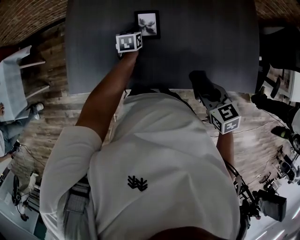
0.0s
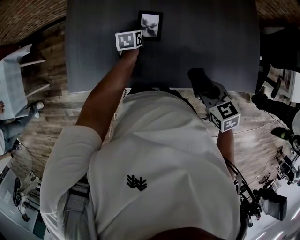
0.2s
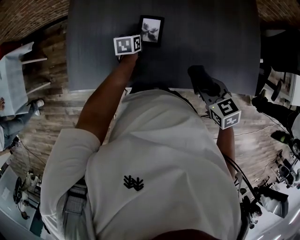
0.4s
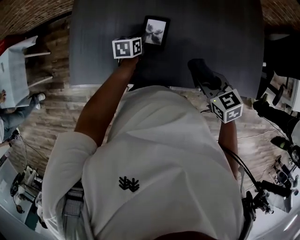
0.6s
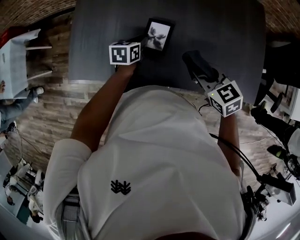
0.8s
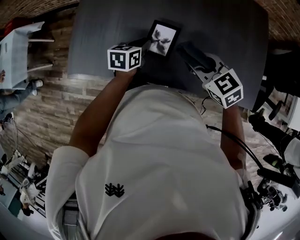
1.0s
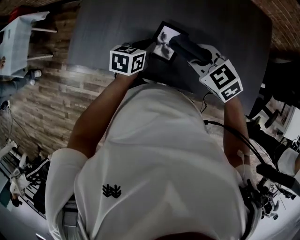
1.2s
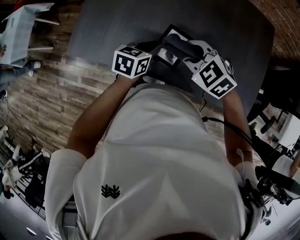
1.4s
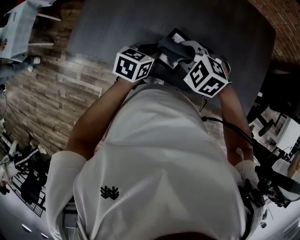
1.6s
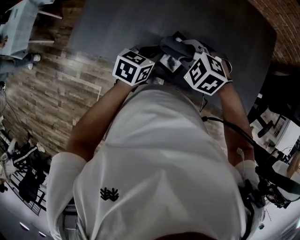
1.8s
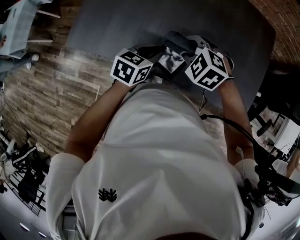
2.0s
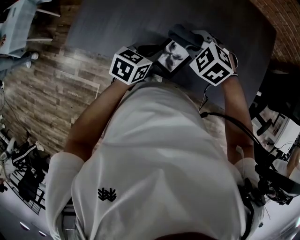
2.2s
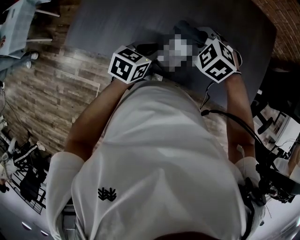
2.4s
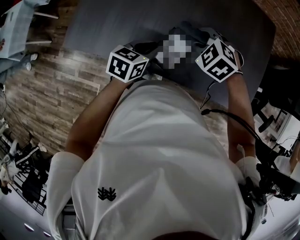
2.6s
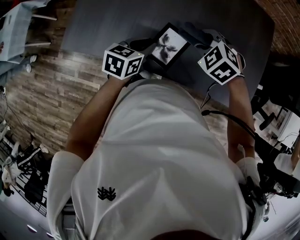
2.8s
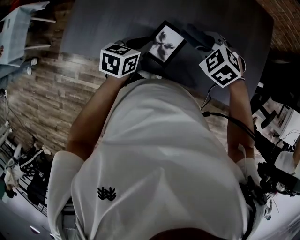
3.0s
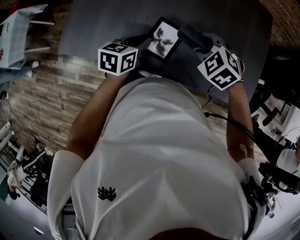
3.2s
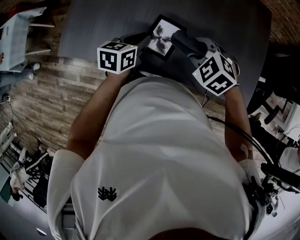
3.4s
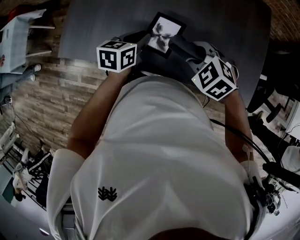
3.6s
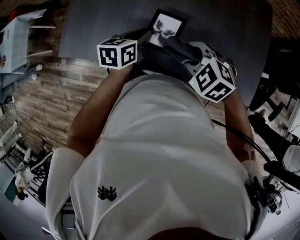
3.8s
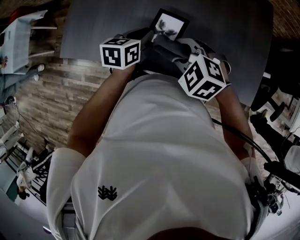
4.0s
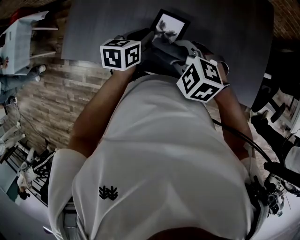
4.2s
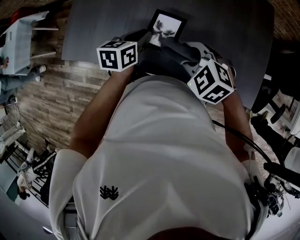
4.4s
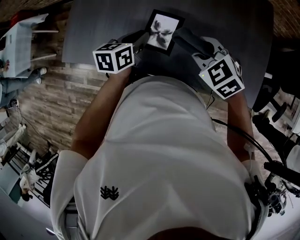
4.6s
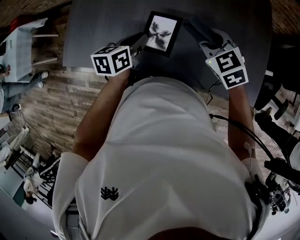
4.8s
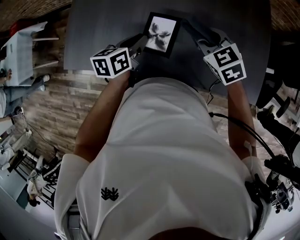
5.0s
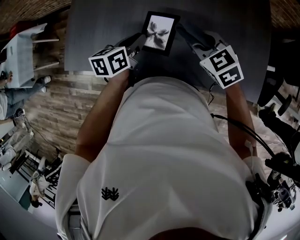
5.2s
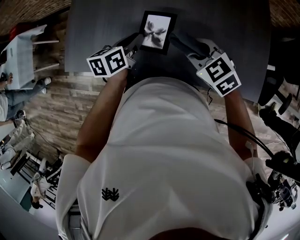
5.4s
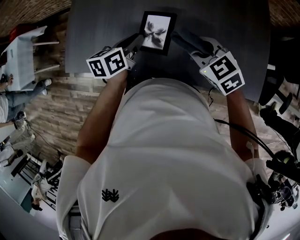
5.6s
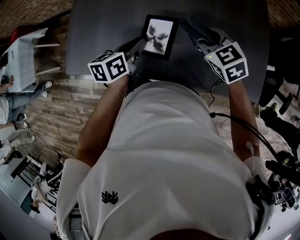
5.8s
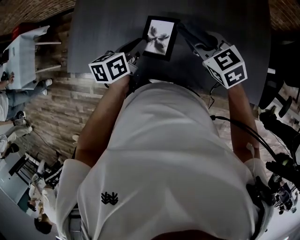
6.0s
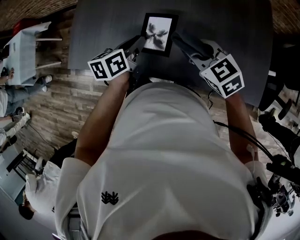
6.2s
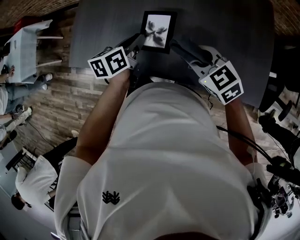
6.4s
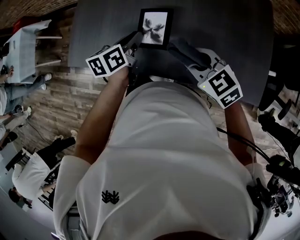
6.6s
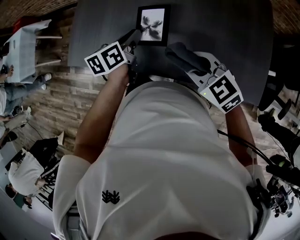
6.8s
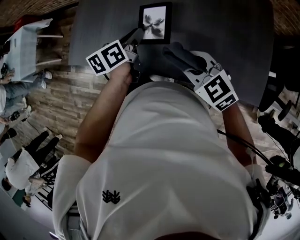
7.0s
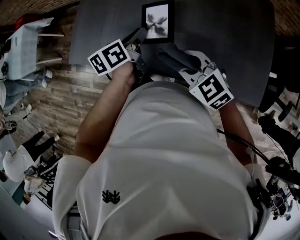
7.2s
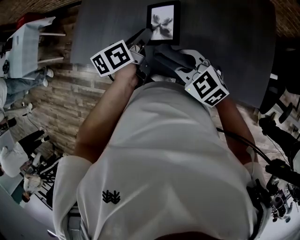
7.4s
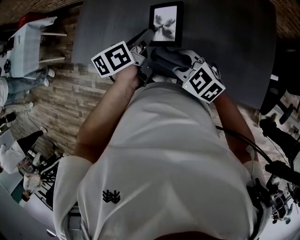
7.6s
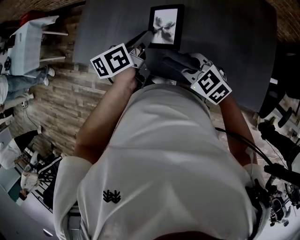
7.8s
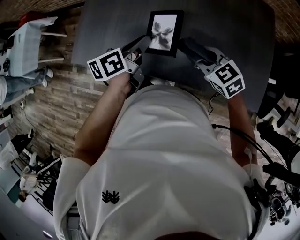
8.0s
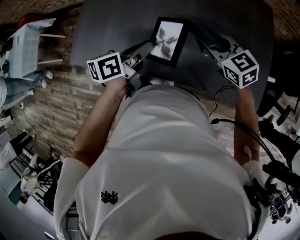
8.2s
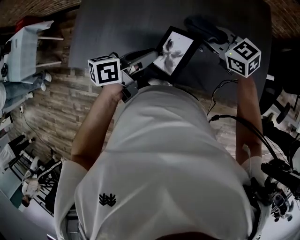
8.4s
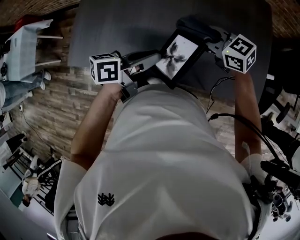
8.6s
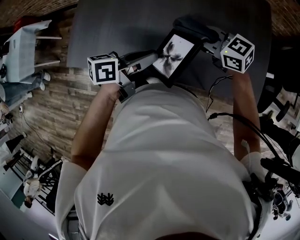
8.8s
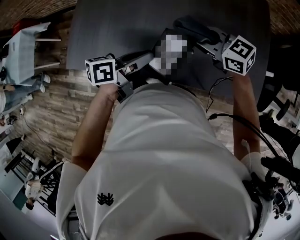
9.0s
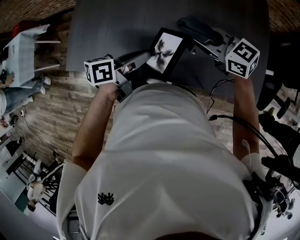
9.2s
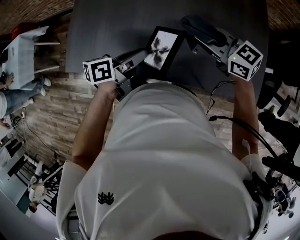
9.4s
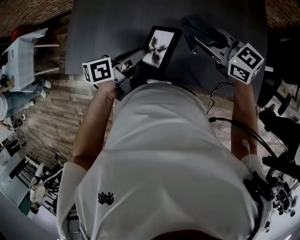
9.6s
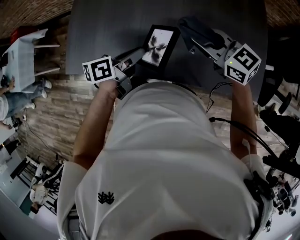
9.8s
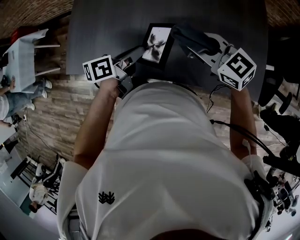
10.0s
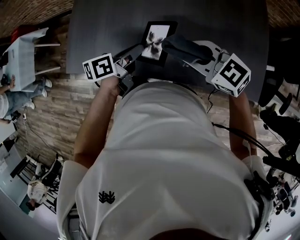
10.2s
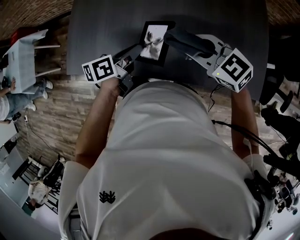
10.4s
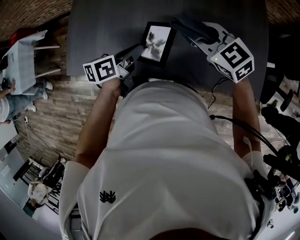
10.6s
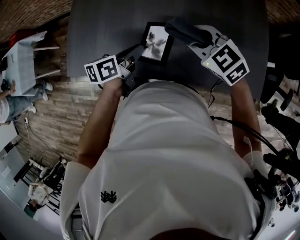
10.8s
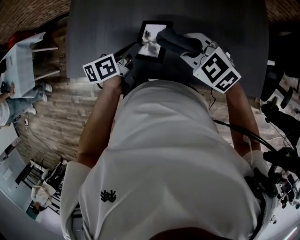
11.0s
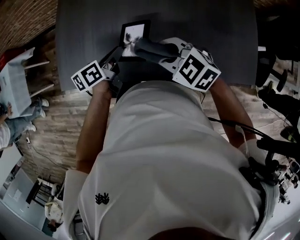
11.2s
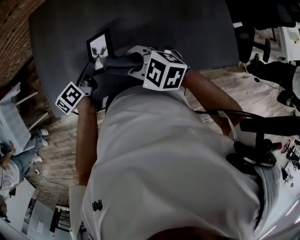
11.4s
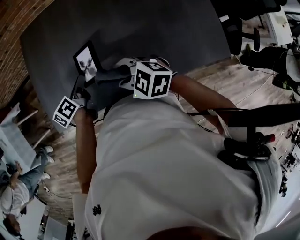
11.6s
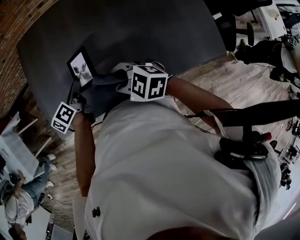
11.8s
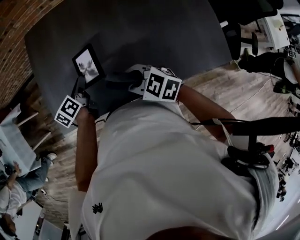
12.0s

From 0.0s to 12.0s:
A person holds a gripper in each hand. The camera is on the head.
From 0.0s to 1.6s: The right gripper is displaced forward and to the left by approximately 10 cm, and rolls counterclockwise, seen from behind, by some 60 degrees. Meanwhile the left gripper travels backward and upward by approximately 25 cm.
From 1.6s to 3.0s: The right gripper travels to the right by approximately 10 cm.
From 3.0s to 4.4s: The right gripper is displaced backward by approximately 5 cm.
From 4.4s to 6.0s: The right gripper goes forward and backward, about 10 cm each way, reversing 2 times, and rotates some 30 degrees.
From 6.0s to 7.6s: The right gripper heads to the left and backward, covering some 15 cm, and rotates roughly 20 degrees.
From 7.6s to 9.0s: The right gripper changes place by about 15 cm, and swivels approximately 20 degrees; the left gripper moves approximately 5 cm, and rotates some 30 degrees.
From 9.0s to 10.4s: The right gripper changes place by some 5 cm. The left gripper shifts by about 5 cm.
From 10.4s to 12.0s: The left gripper heads to the left and forward, covering roughly 15 cm, while the right gripper is displaced to the left by roughly 15 cm.

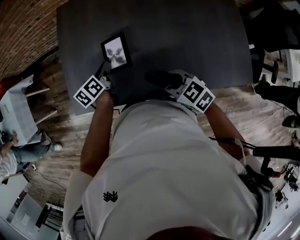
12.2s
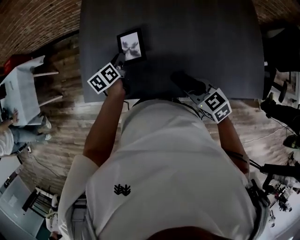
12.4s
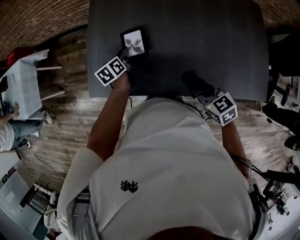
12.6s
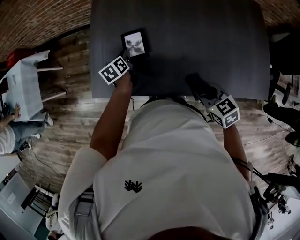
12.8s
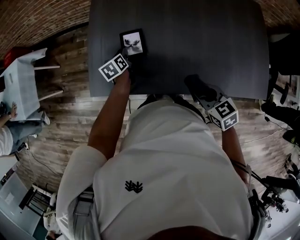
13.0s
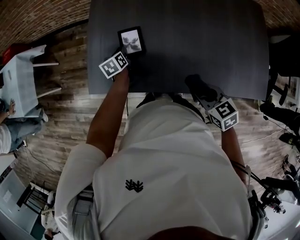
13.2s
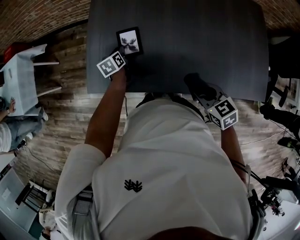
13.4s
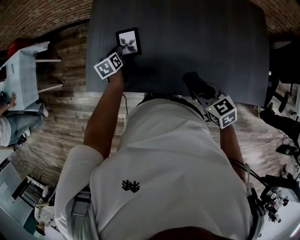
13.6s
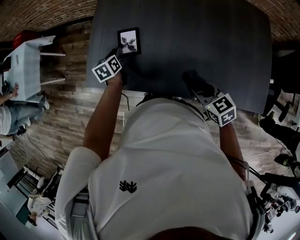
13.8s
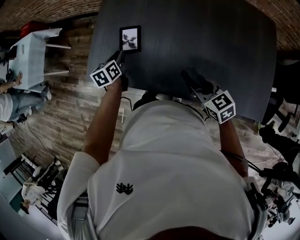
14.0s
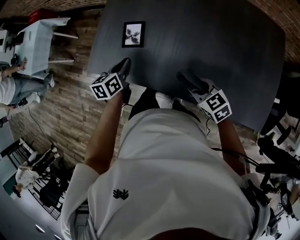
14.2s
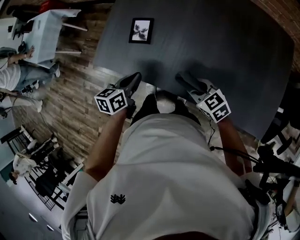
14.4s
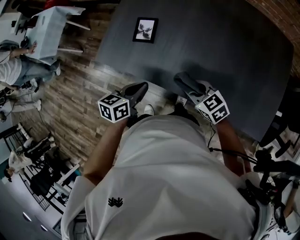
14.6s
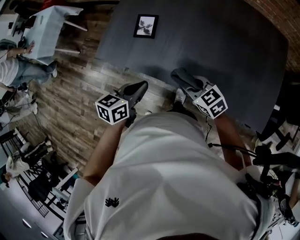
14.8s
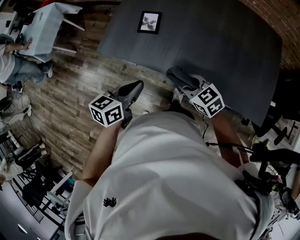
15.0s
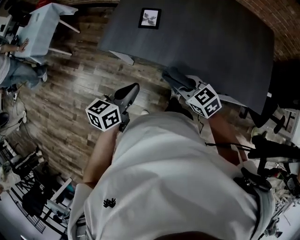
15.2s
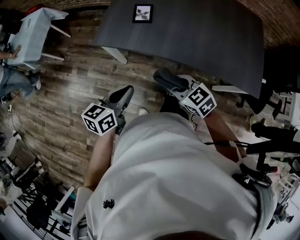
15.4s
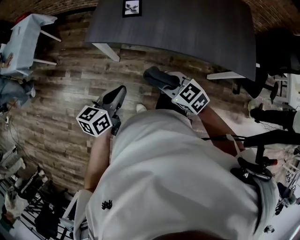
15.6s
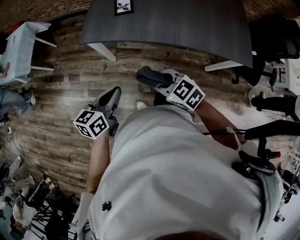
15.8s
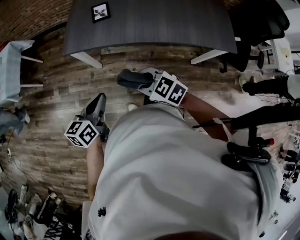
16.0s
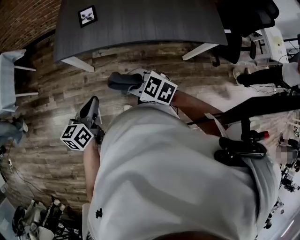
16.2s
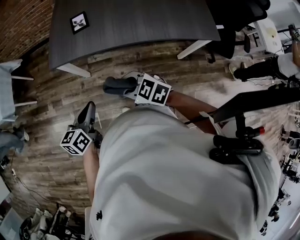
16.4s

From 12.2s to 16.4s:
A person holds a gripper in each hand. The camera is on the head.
From 12.2s to 13.6s: The left gripper goes roughly 20 cm to the left, downward and forward, and swivels approximately 20 degrees.
From 13.6s to 15.0s: The left gripper moves backward and upward, about 40 cm, and rotates some 30 degrees, while the right gripper moves to the left and backward, about 10 cm, and changes its angle by approximately 30 degrees.
From 15.0s to 16.4s: The grippers both shift backward and to the left by approximately 25 cm.

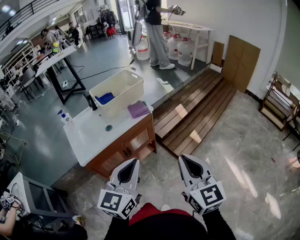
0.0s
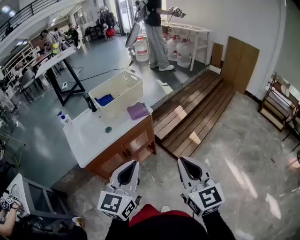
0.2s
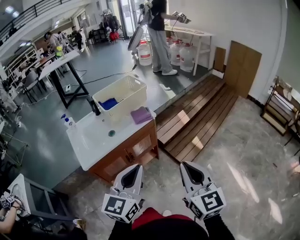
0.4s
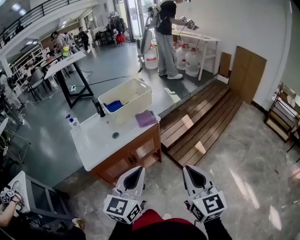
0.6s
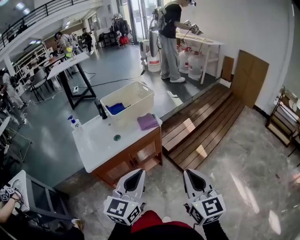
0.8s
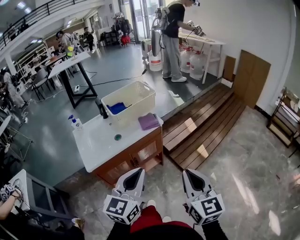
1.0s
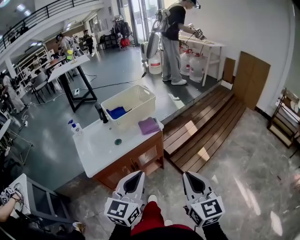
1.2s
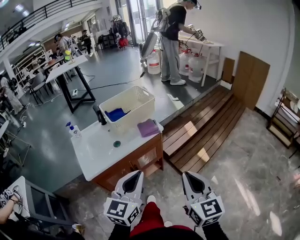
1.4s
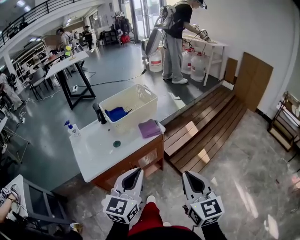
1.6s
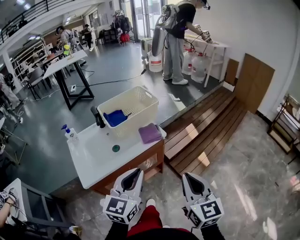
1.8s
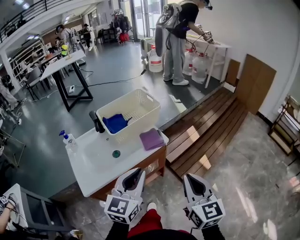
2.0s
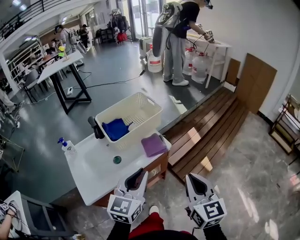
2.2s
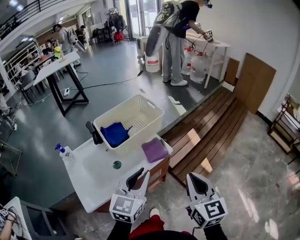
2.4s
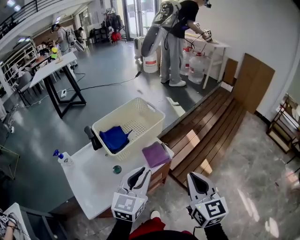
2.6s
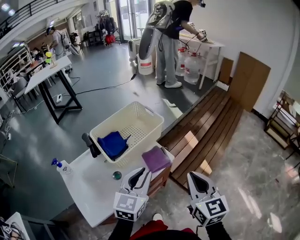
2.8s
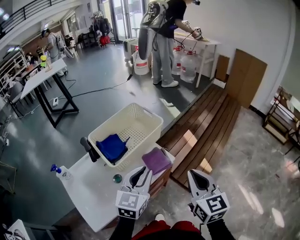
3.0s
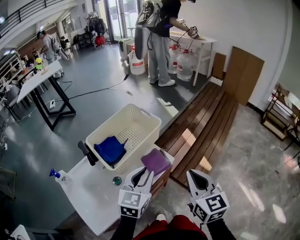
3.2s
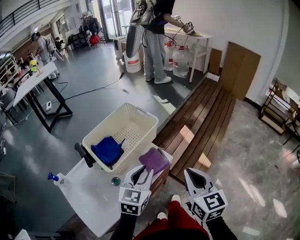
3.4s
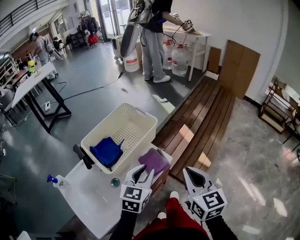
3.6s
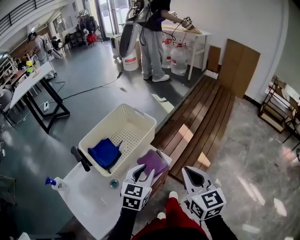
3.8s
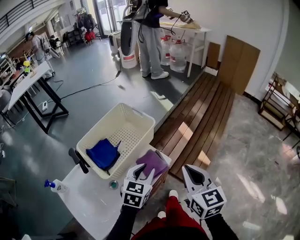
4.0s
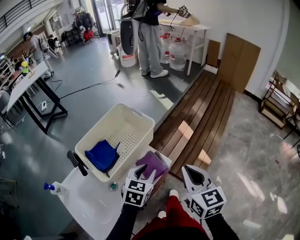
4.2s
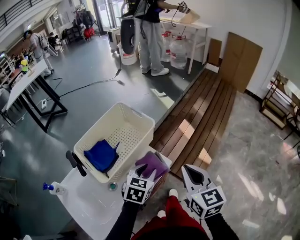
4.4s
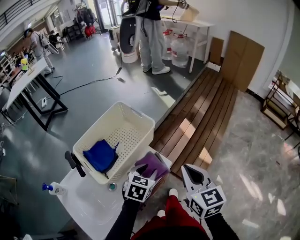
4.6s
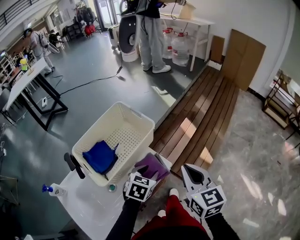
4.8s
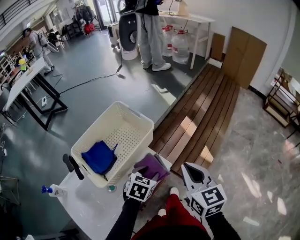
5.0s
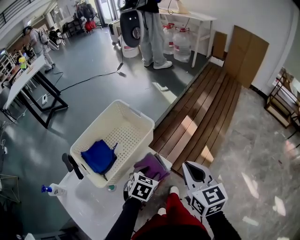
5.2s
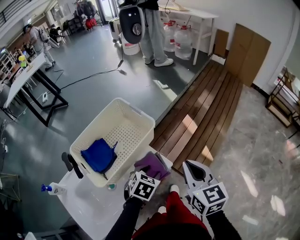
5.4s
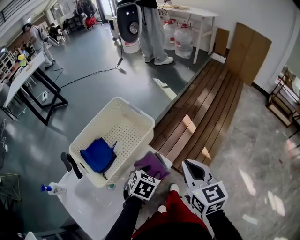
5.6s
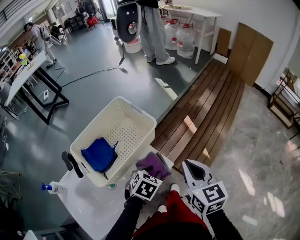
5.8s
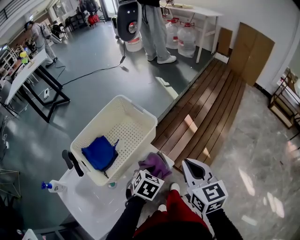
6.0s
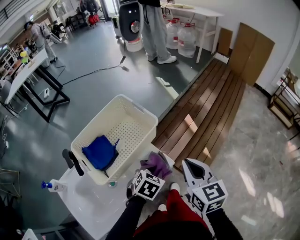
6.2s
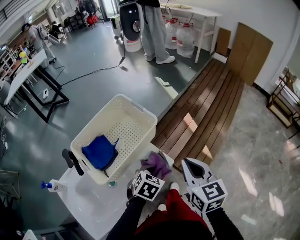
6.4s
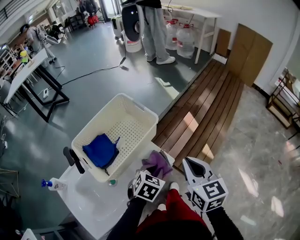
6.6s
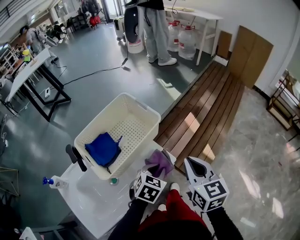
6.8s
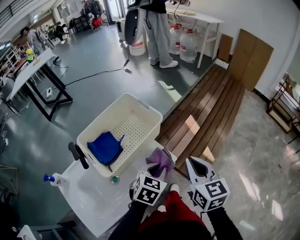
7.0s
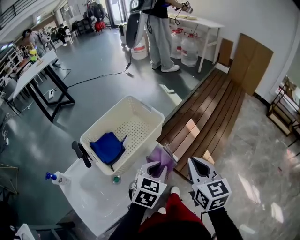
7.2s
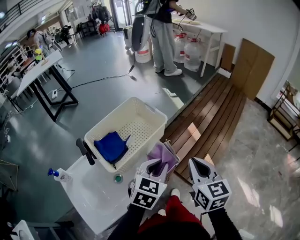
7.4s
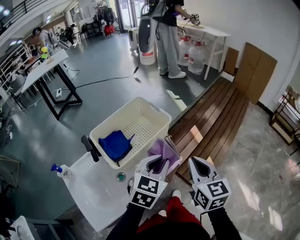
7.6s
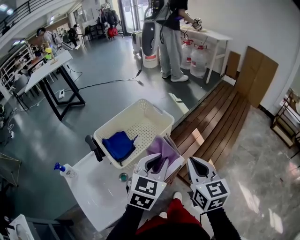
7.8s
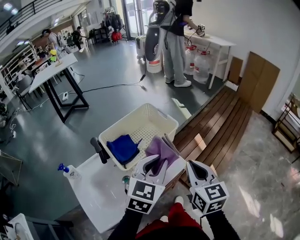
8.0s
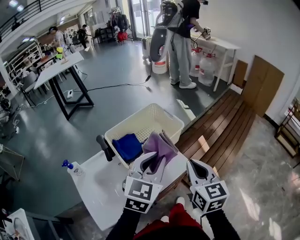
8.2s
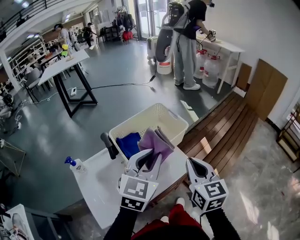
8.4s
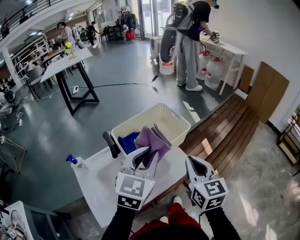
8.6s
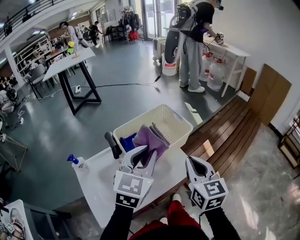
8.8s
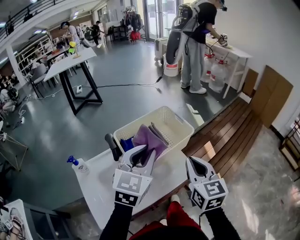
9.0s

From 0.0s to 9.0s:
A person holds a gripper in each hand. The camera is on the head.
From 0.0s to 1.6s: Both grippers move forward, approximately 10 cm.
From 1.6s to 3.0s: The two grippers go approximately 25 cm forward.
From 3.0s to 4.4s: The right gripper moves forward, roughly 10 cm. The left gripper goes about 15 cm downward and forward, and swivels about 30 degrees.
From 4.4s to 6.0s: The left gripper goes roughly 5 cm downward. The right gripper heads forward, covering some 5 cm.
From 6.0s to 7.6s: The left gripper is displaced upward by roughly 20 cm, and turns by about 30 degrees, while the right gripper moves backward, about 5 cm.
From 7.6s to 9.0s: The left gripper goes approximately 15 cm to the left and upward, and changes its angle by approximately 20 degrees; the right gripper is displaced to the left by about 10 cm.
